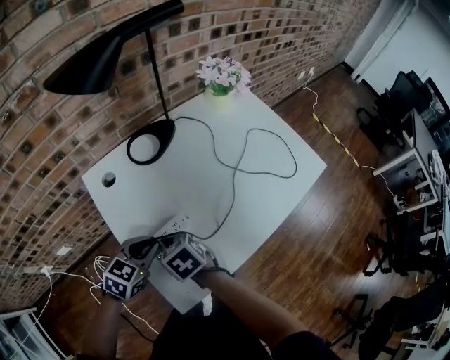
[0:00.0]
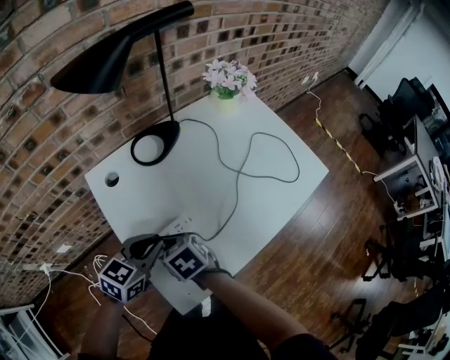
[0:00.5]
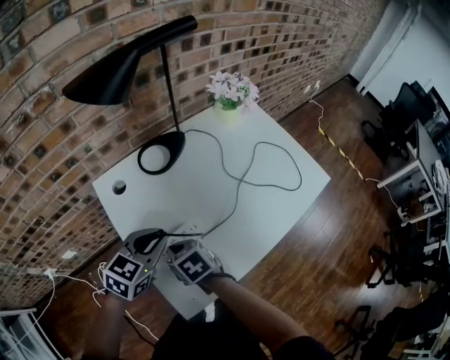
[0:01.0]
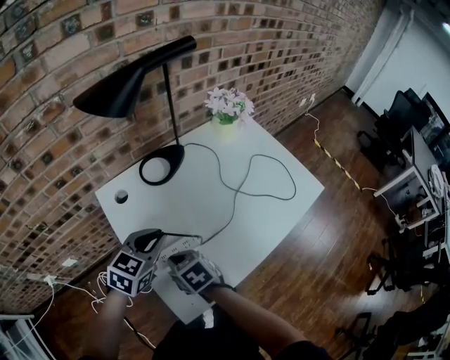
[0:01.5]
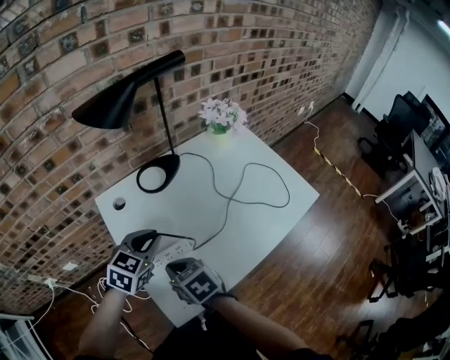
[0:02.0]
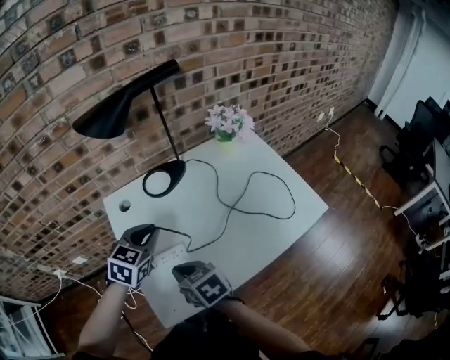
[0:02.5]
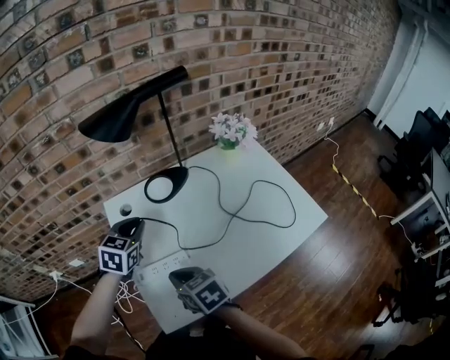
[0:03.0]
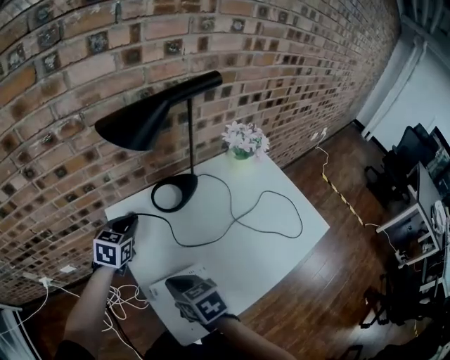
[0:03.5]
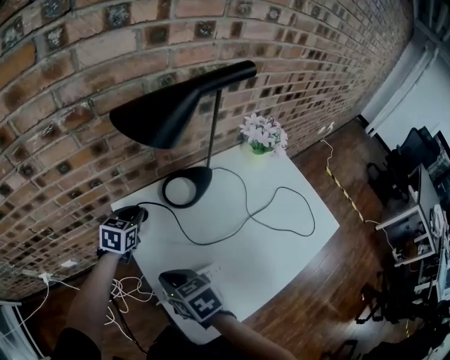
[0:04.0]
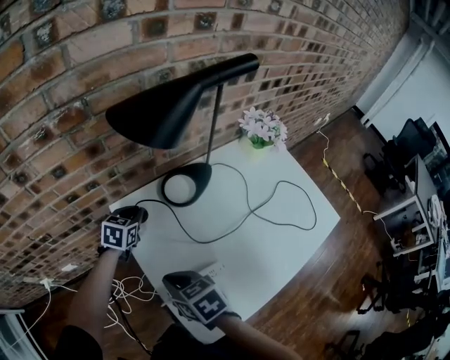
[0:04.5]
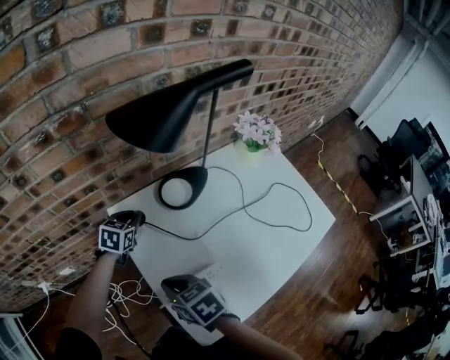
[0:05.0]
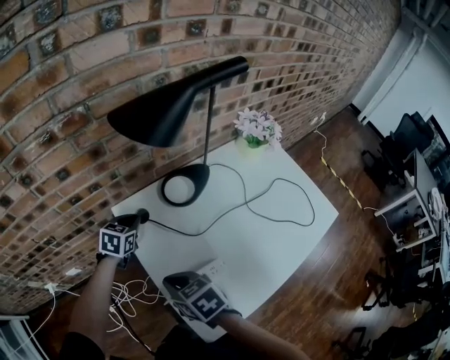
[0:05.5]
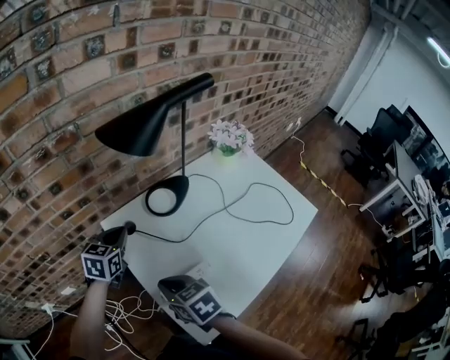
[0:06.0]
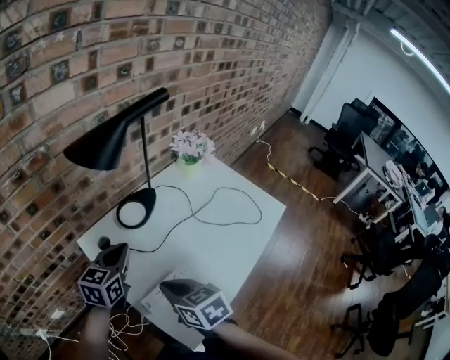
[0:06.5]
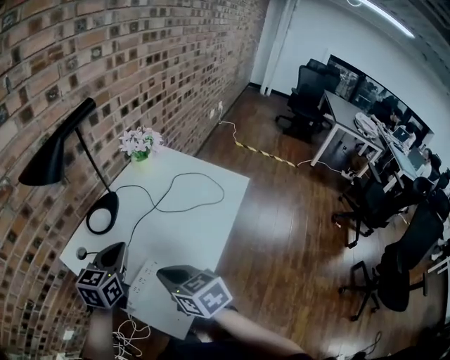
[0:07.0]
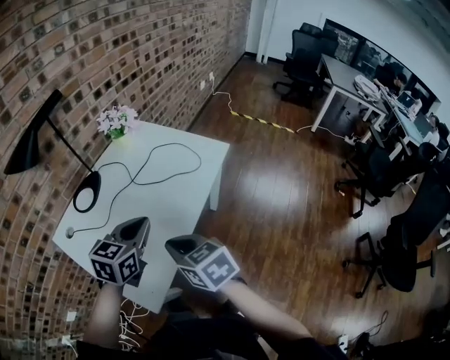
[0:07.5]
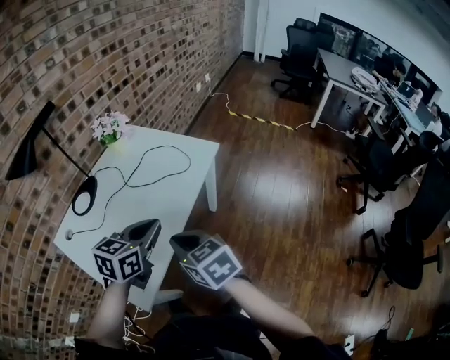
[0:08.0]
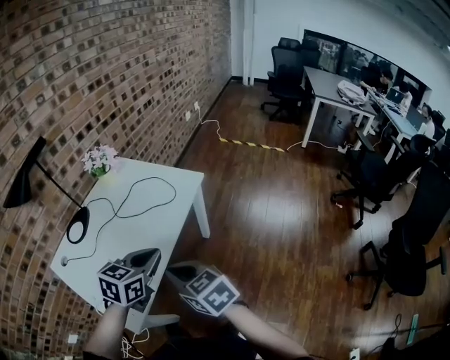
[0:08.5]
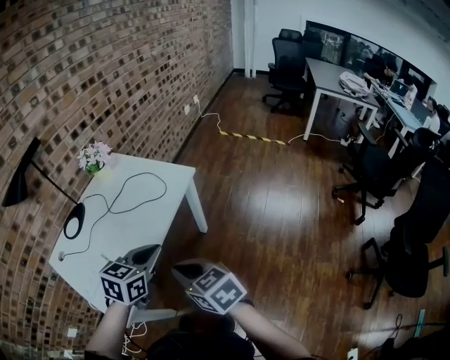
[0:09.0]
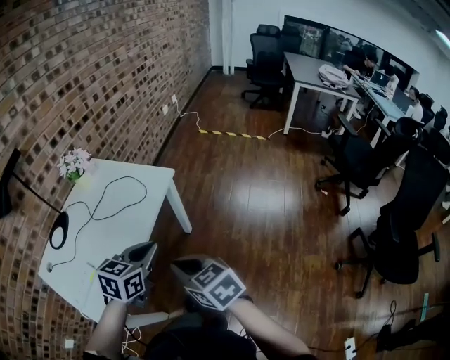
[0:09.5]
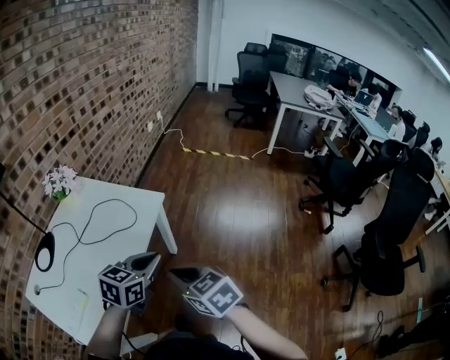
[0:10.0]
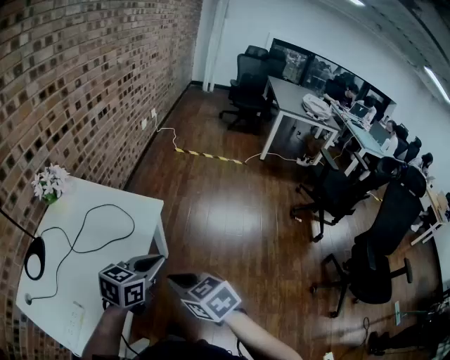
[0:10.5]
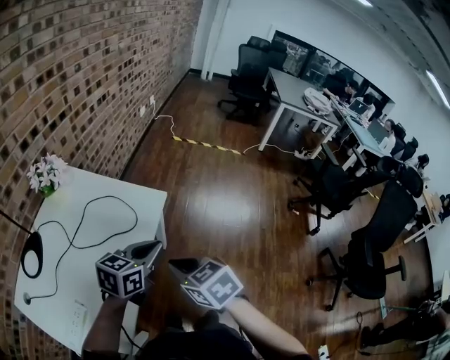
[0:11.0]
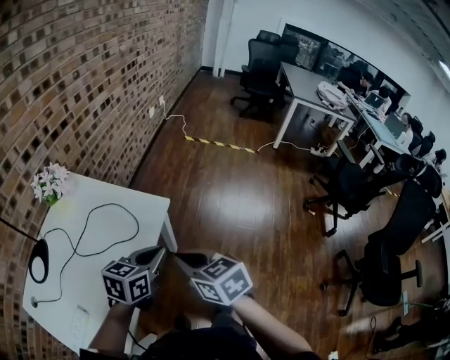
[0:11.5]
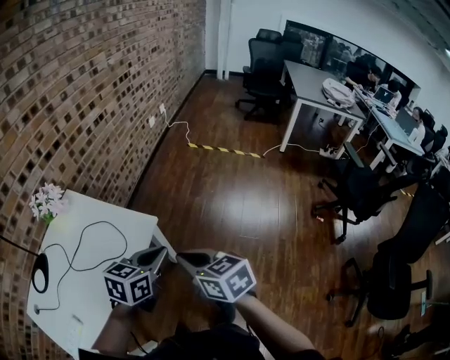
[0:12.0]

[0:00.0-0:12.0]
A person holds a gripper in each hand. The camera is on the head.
0:00.0 to 0:02.0: The right gripper heads upward, covering about 5 cm. Meanwhile the left gripper heads upward and forward, covering roughly 10 cm.
0:02.0 to 0:04.0: The left gripper goes approximately 25 cm forward and to the left. The right gripper heads forward and to the left, covering roughly 10 cm.
0:04.0 to 0:06.0: The left gripper moves upward, about 5 cm.
0:06.0 to 0:08.0: The right gripper moves about 40 cm, and rotates some 30 degrees, while the left gripper moves roughly 50 cm, and turns by roughly 40 degrees.
0:08.0 to 0:10.0: The two grippers go about 20 cm to the right.
0:10.0 to 0:12.0: Both grippers travel together forward and to the right, approximately 20 cm.

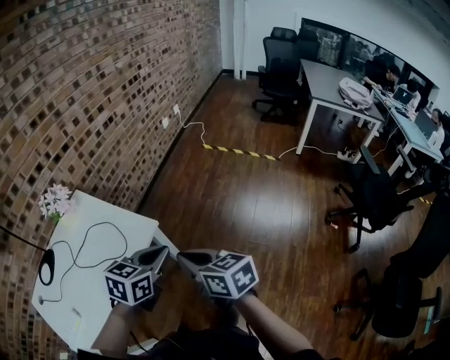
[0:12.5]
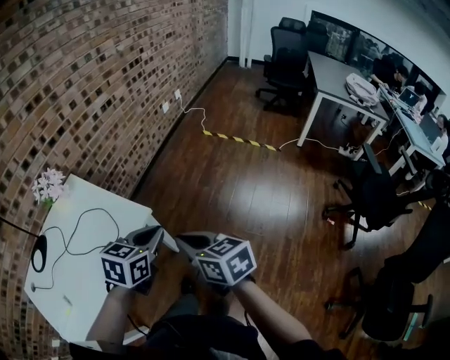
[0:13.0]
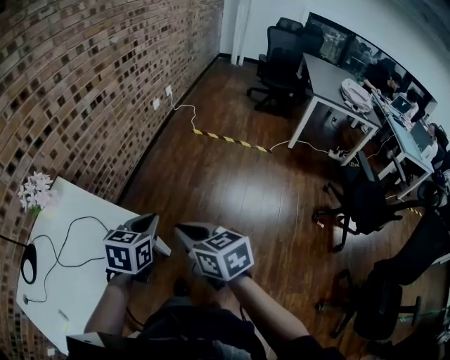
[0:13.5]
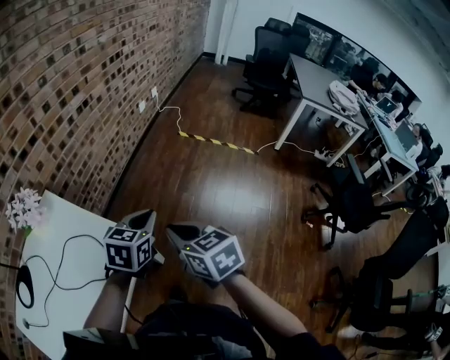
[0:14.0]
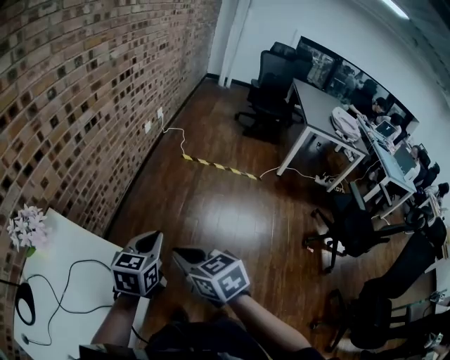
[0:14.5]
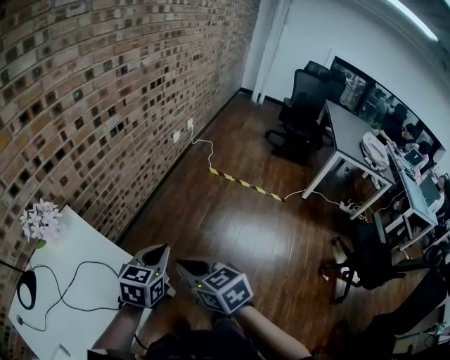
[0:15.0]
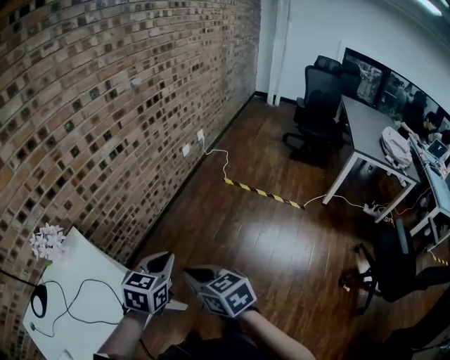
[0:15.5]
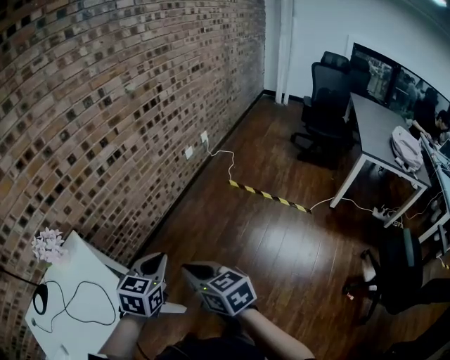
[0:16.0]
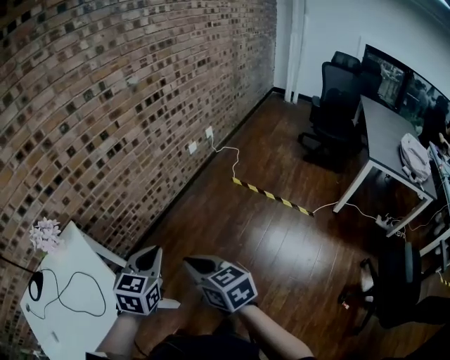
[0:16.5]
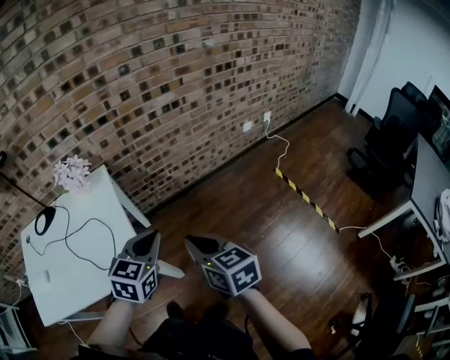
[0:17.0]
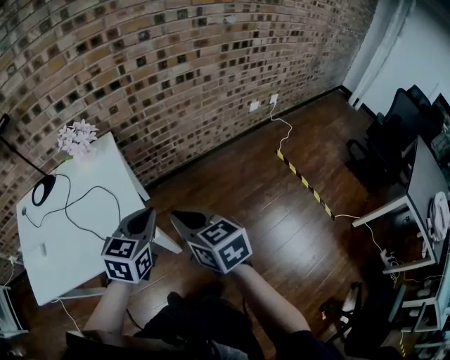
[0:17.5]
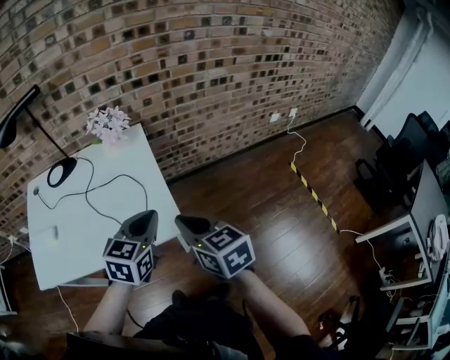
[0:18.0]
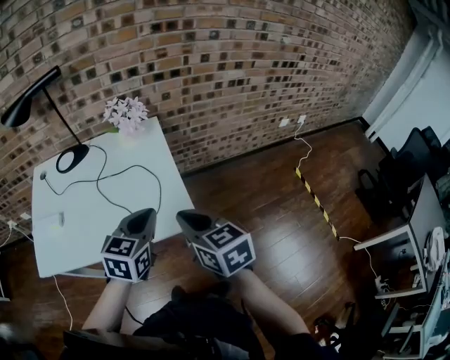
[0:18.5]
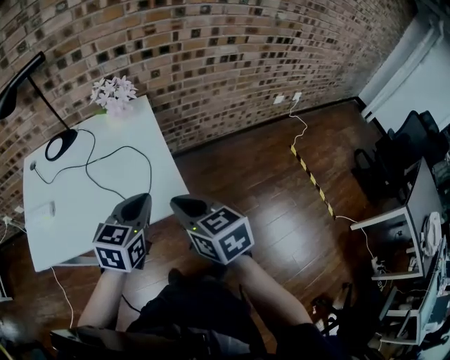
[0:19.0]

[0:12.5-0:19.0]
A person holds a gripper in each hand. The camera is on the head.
0:12.5 to 0:14.5: The two grippers go about 20 cm forward.
0:14.5 to 0:17.0: The right gripper ends up about 15 cm from where it was, and swivels approximately 40 degrees. Meanwhile the left gripper changes its angle by about 40 degrees.
0:17.0 to 0:19.0: Both grippers move to the left, roughly 25 cm.

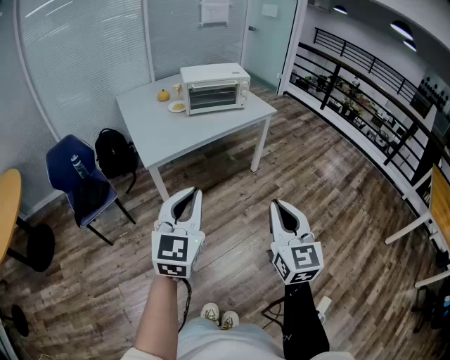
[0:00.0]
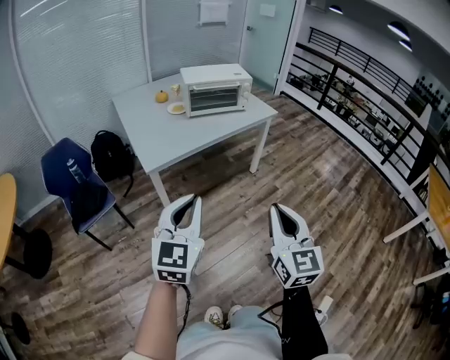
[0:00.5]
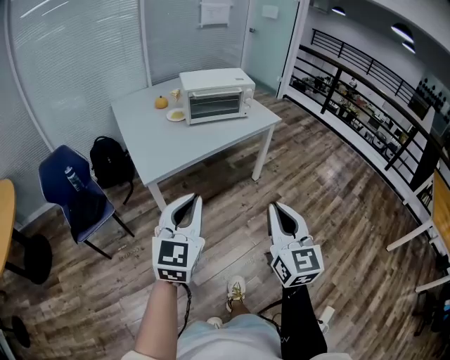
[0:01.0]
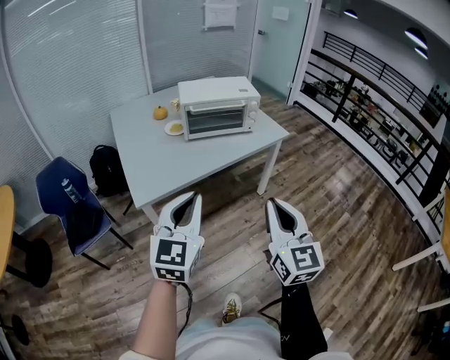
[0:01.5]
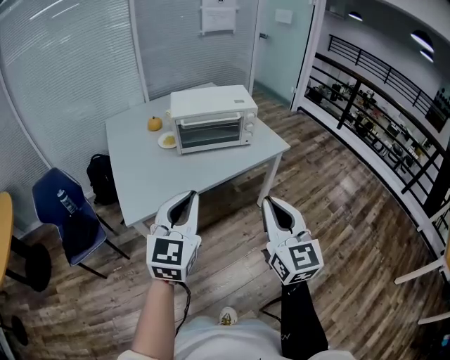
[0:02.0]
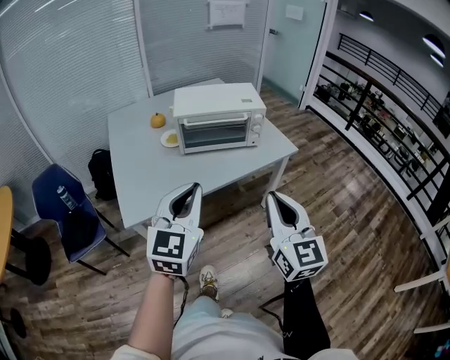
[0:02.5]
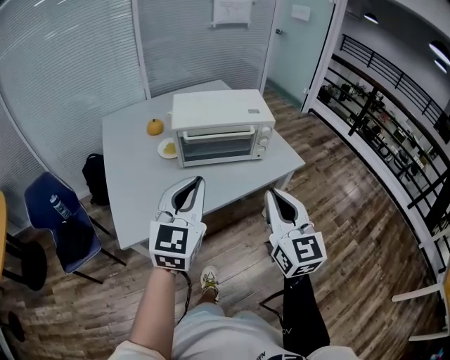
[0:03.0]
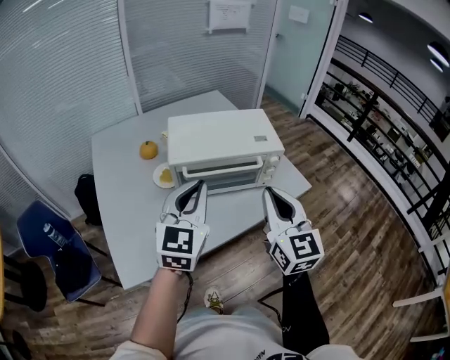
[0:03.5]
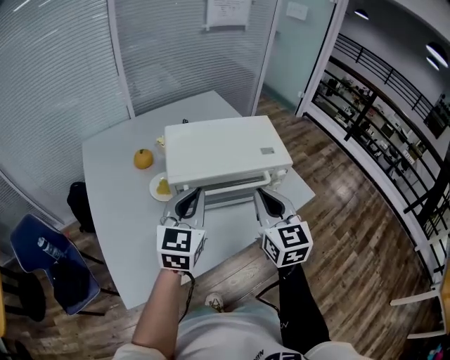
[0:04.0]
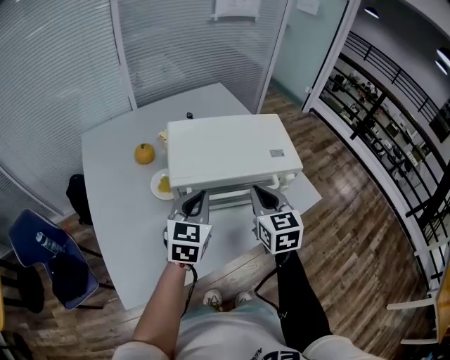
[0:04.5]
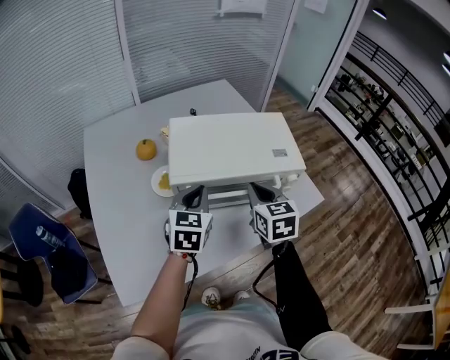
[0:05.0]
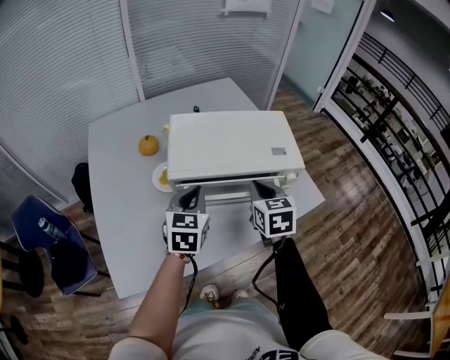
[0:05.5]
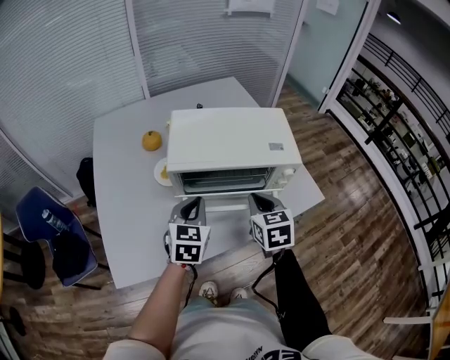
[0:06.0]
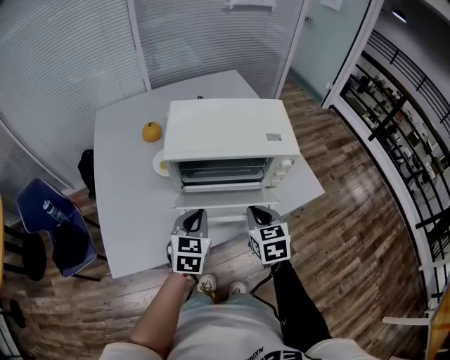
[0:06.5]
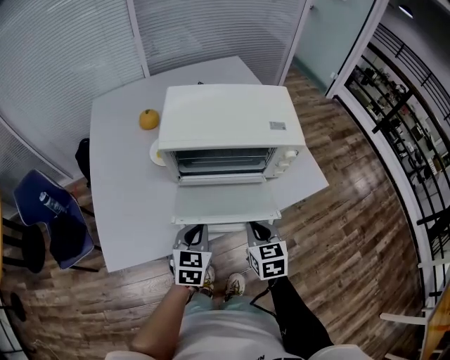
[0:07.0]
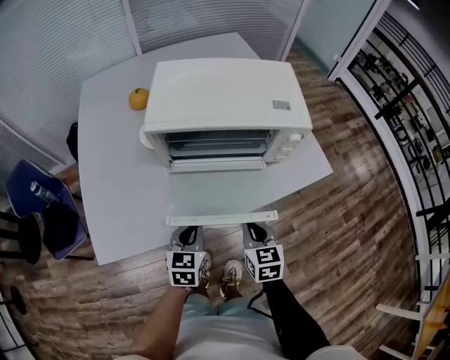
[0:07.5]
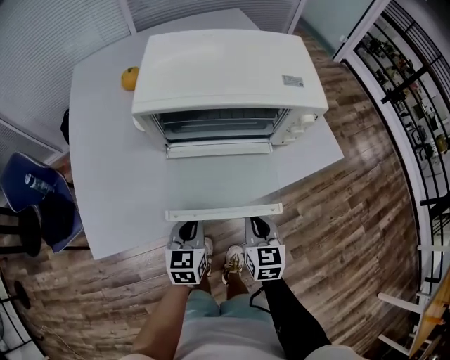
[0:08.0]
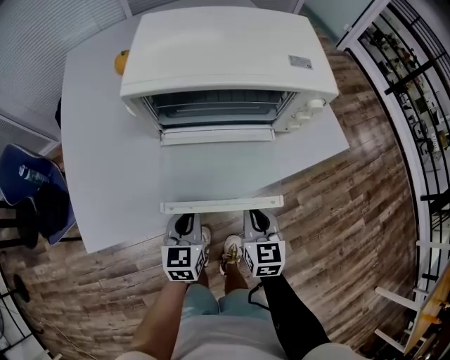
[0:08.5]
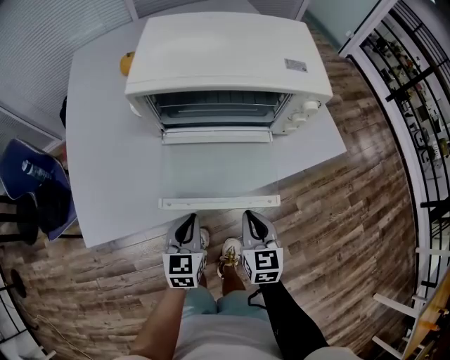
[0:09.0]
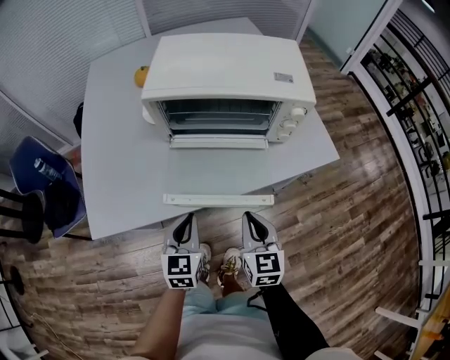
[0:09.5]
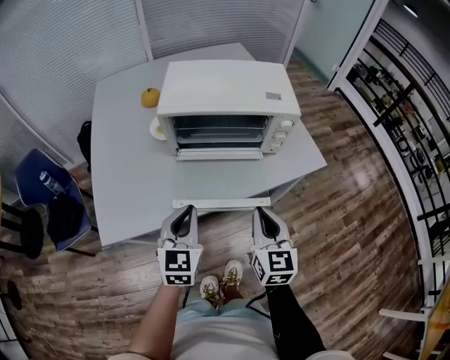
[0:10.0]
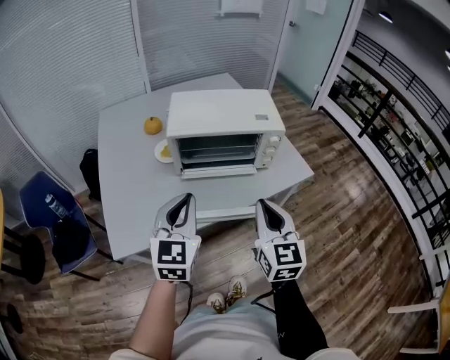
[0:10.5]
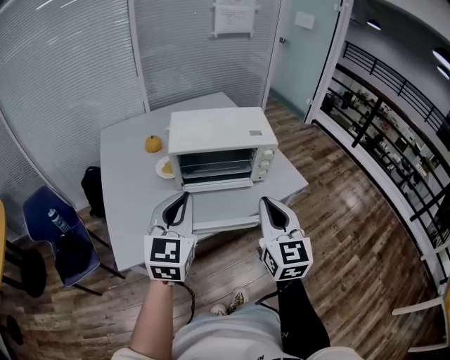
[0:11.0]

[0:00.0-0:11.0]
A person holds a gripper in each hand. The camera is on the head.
0:00.0 to 0:02.0: The grippers both shift forward by some 35 cm.
0:02.0 to 0:03.5: The two grippers go approximately 35 cm forward.
0:03.5 to 0:05.5: The left gripper moves downward and forward, about 20 cm, and turns by about 30 degrees. Meanwhile the right gripper shifts roughly 25 cm forward and downward, and tilts its fingers approximately 30 degrees downward.
0:05.5 to 0:07.5: Both grippers travel together downward and backward, roughly 25 cm.
0:07.5 to 0:09.0: The left gripper moves approximately 5 cm. Meanwhile the right gripper shifts by some 5 cm.
0:09.0 to 0:11.0: The grippers both shift upward by roughly 35 cm. The left gripper swivels roughly 30 degrees. The right gripper changes its angle by approximately 30 degrees.
